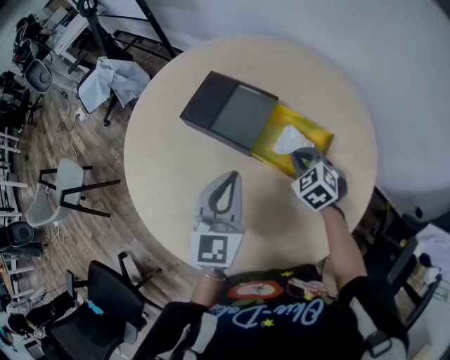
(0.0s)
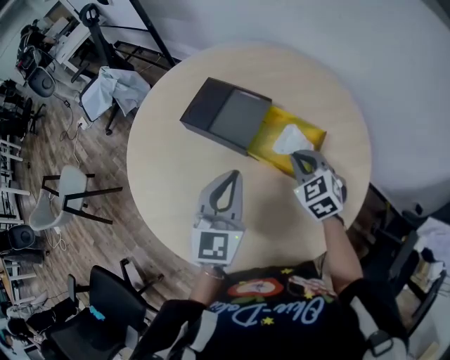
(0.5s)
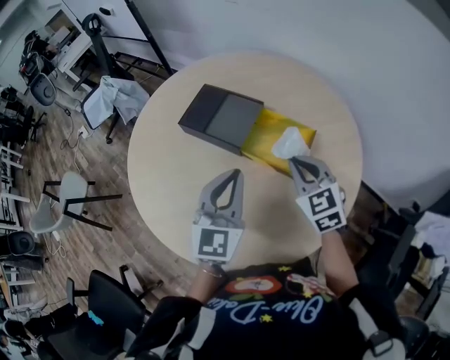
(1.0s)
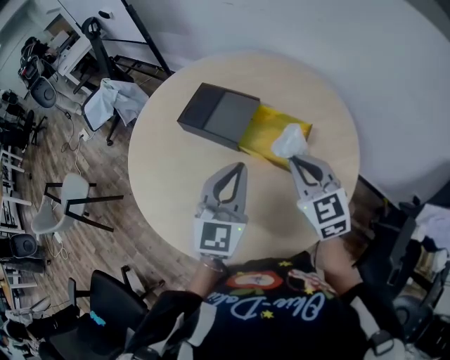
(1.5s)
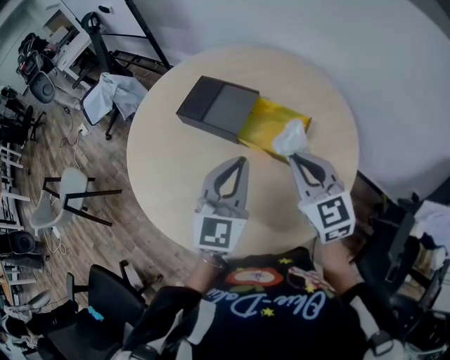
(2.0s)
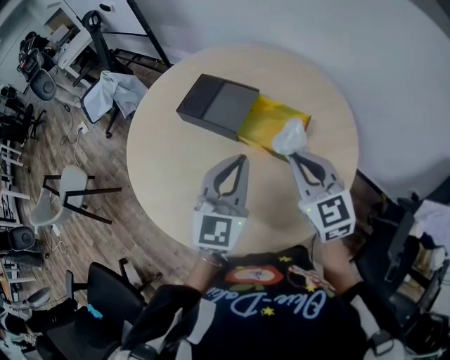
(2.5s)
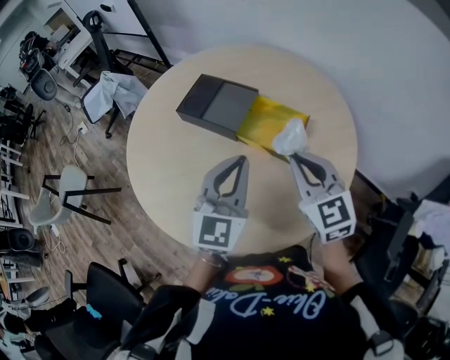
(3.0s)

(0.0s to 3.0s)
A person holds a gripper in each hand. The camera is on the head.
0.0s - 1.5s: The right gripper goes some 20 cm upward and backward, and changes its angle by some 30 degrees, while the left gripper is displaced upward and backward by approximately 10 cm.
1.5s - 3.0s: The grippers move only a little.

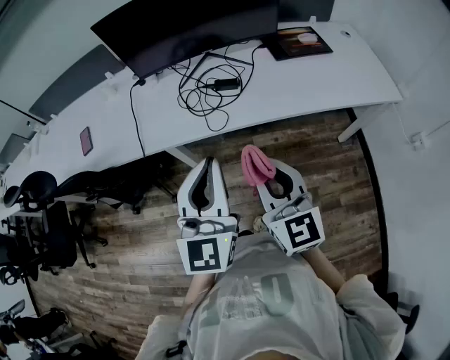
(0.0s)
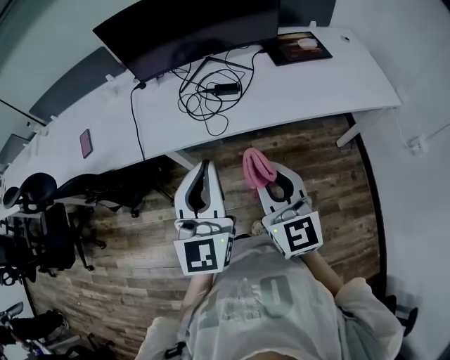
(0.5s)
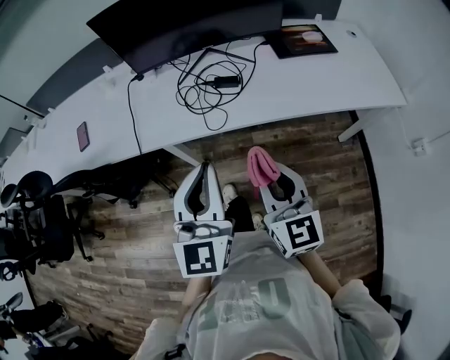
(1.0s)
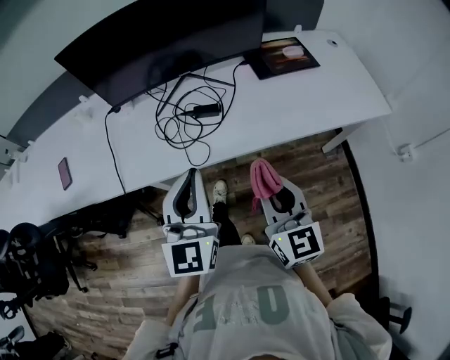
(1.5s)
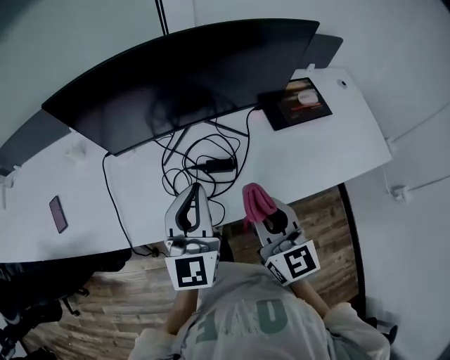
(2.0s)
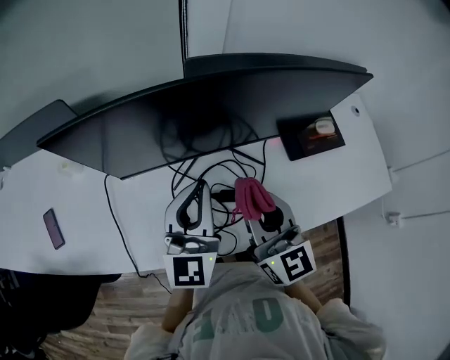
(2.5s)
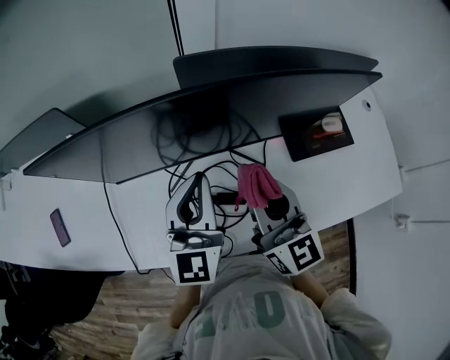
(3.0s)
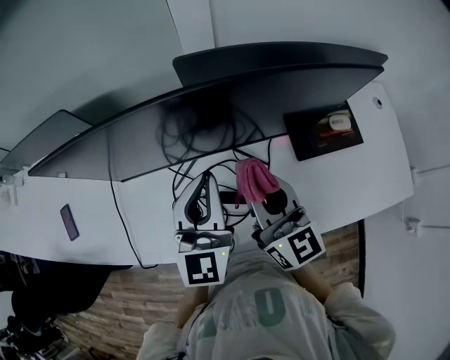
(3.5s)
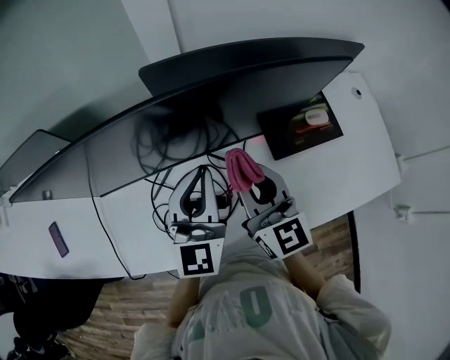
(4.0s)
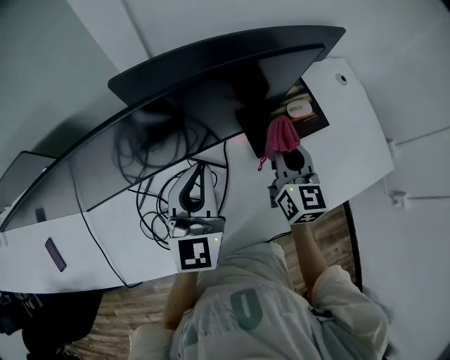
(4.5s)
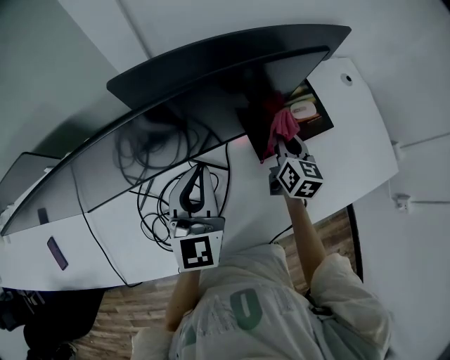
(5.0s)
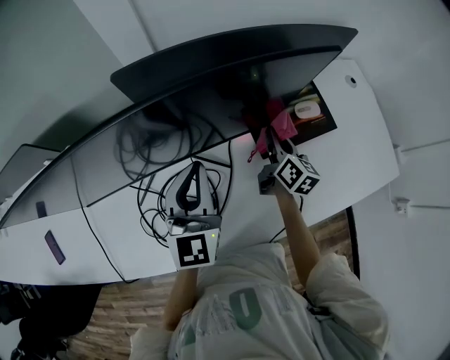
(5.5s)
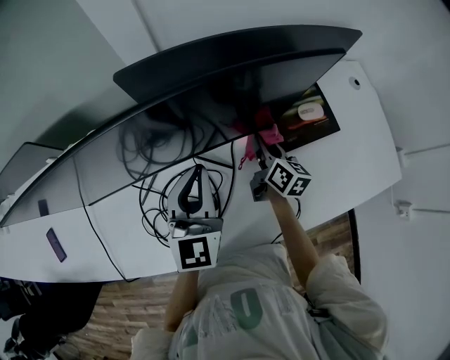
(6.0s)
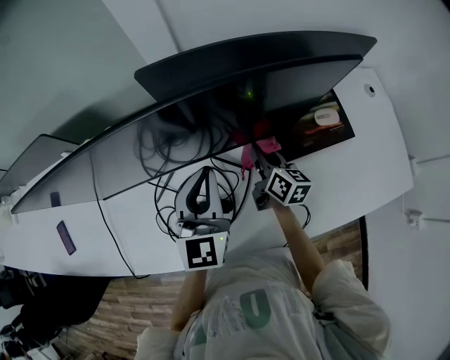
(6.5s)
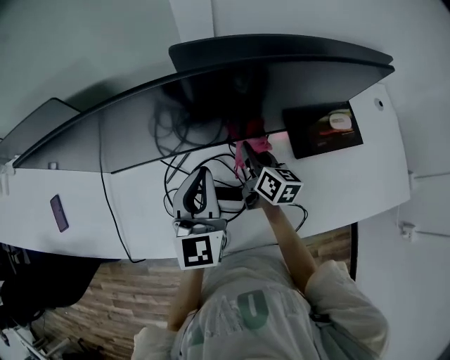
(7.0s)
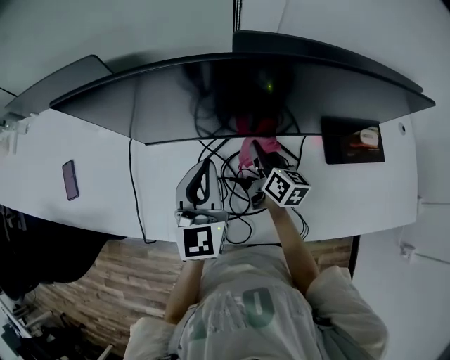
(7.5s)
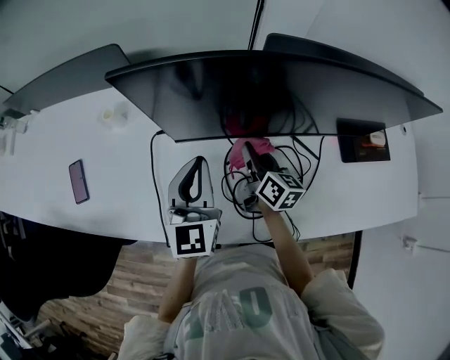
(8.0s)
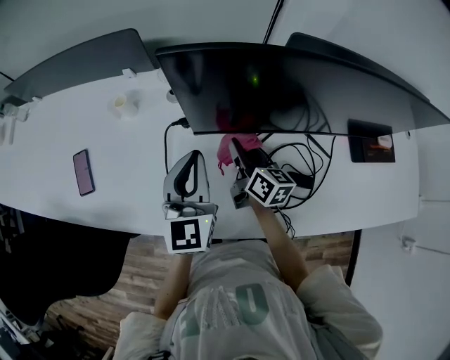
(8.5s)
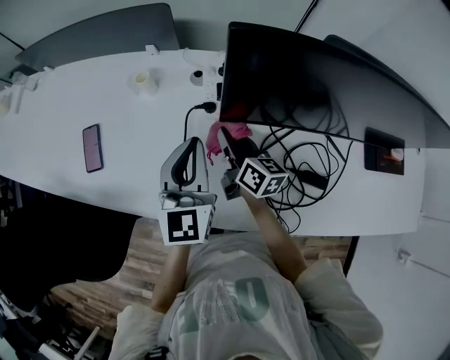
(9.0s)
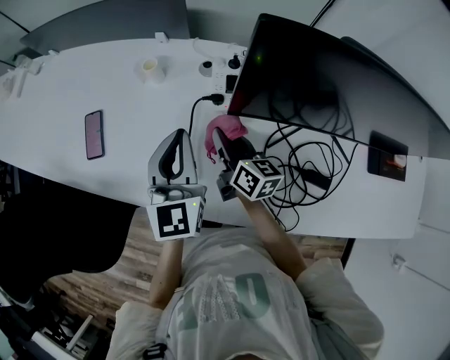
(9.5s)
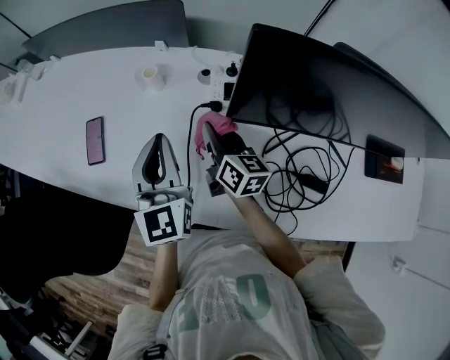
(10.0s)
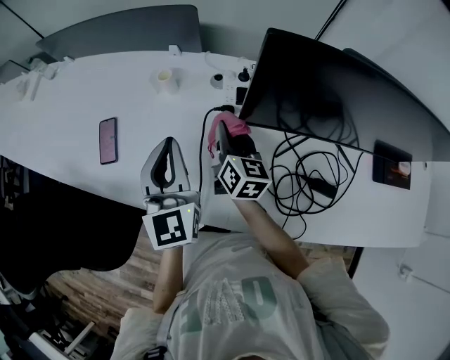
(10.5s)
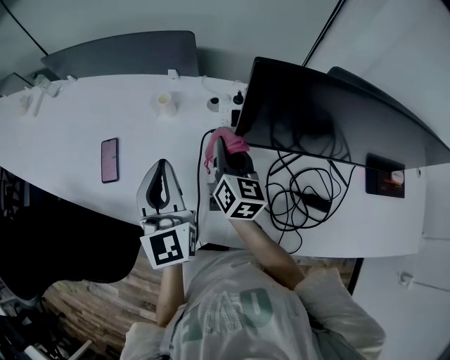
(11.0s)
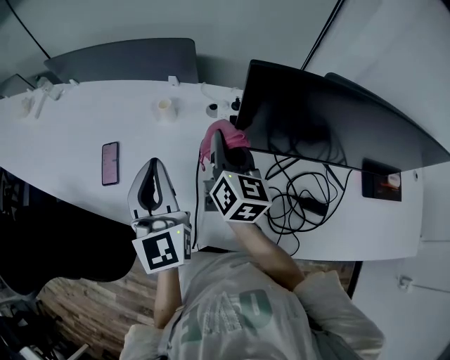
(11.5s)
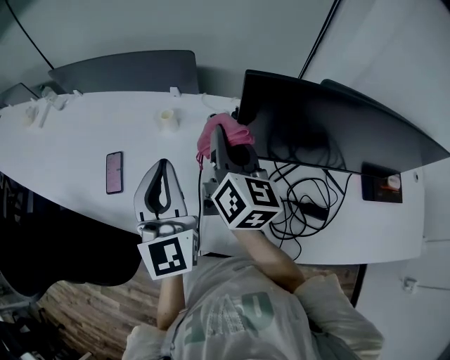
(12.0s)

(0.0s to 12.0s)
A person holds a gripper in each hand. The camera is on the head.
0.0s - 2.0s: Both grippers move forward, approximately 25 cm.
2.0s - 4.0s: The right gripper moves forward, some 20 cm; the left gripper shifts some 20 cm forward and to the right.
4.0s - 6.0s: The right gripper moves downward, to the right and forward, roughly 25 cm, and changes its angle by about 40 degrees, while the left gripper ends up about 5 cm from where it was.
6.0s - 8.0s: The two grippers go roughly 35 cm to the left.
8.0s - 10.0s: Both grippers move to the left, approximately 20 cm. The left gripper swivels about 20 degrees.
10.0s - 12.0s: The right gripper travels upward by some 20 cm, and changes its angle by about 20 degrees. Meanwhile the left gripper goes about 10 cm upward.

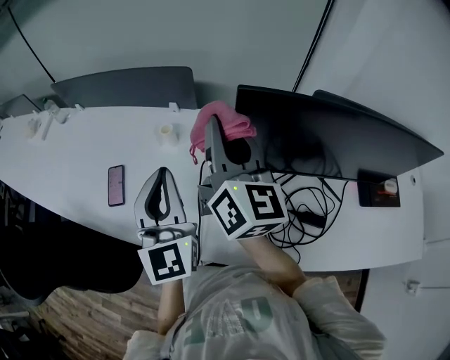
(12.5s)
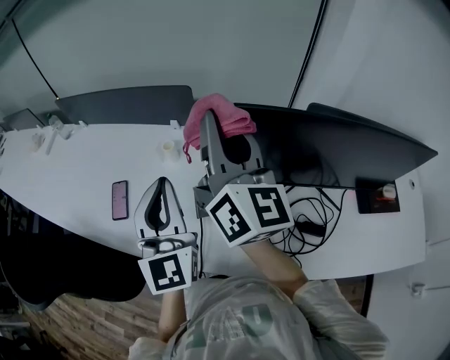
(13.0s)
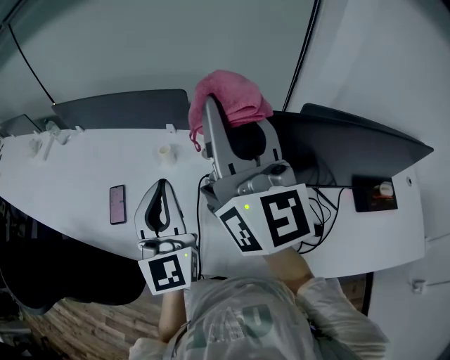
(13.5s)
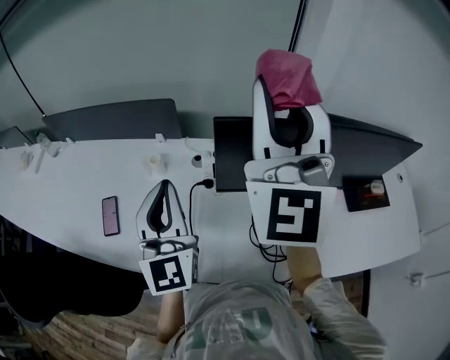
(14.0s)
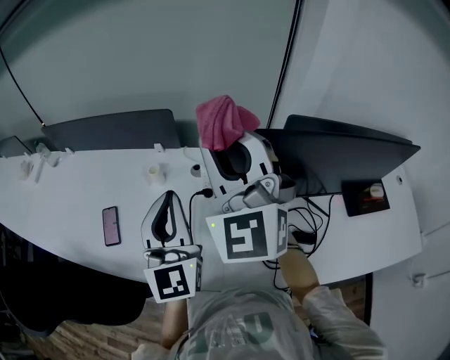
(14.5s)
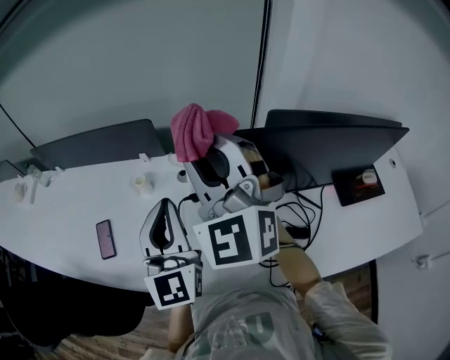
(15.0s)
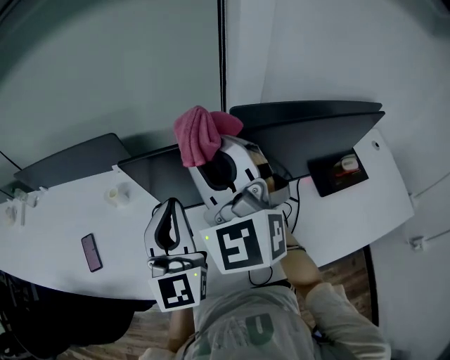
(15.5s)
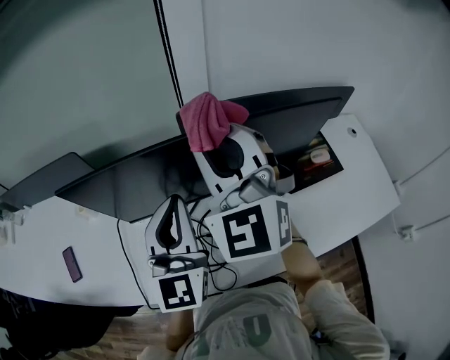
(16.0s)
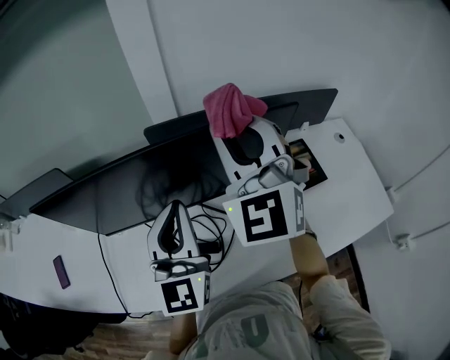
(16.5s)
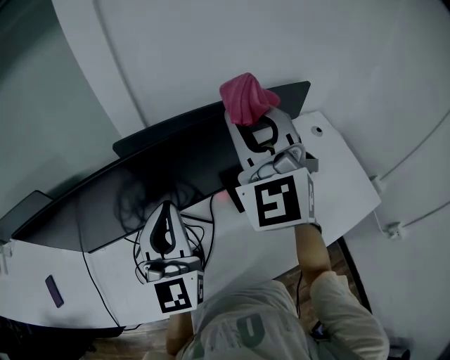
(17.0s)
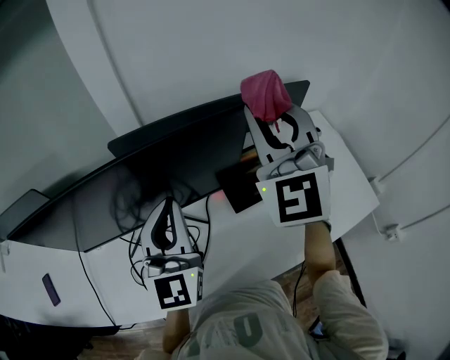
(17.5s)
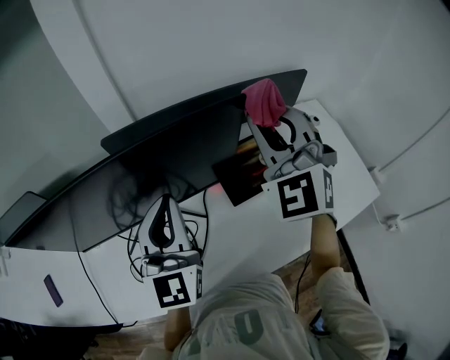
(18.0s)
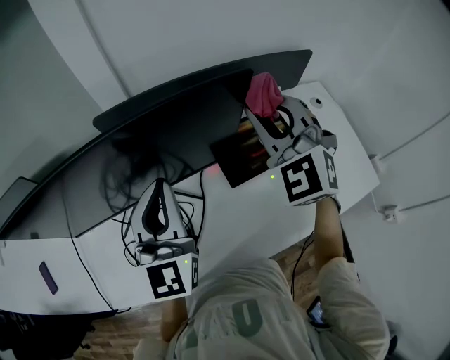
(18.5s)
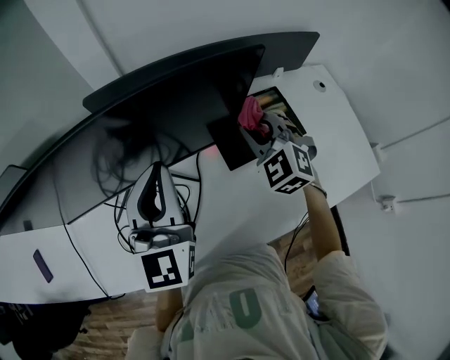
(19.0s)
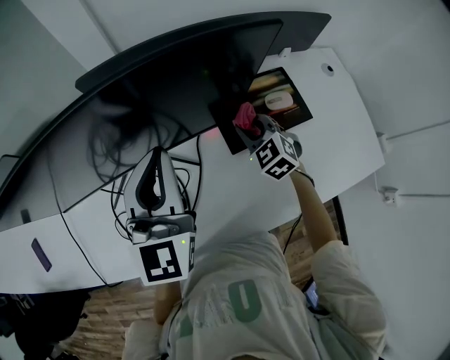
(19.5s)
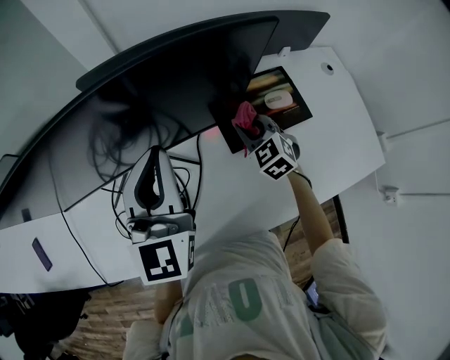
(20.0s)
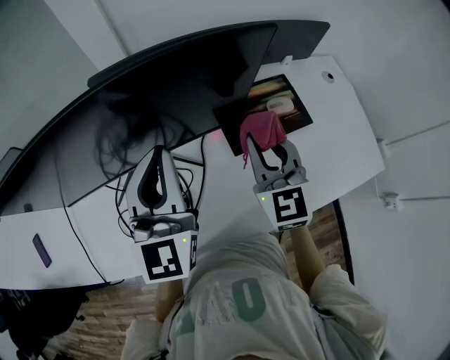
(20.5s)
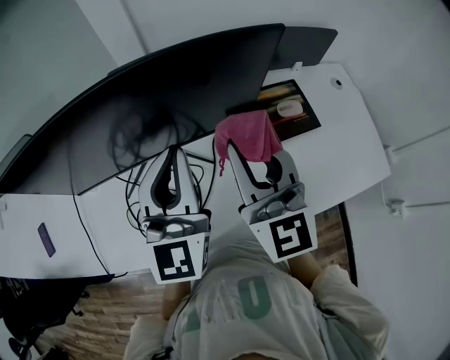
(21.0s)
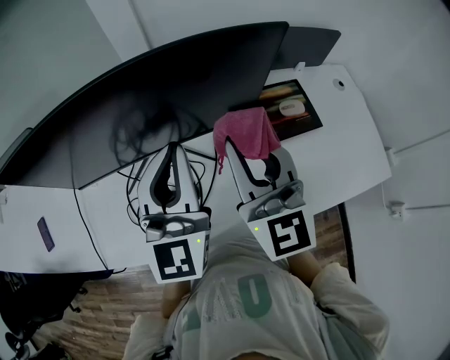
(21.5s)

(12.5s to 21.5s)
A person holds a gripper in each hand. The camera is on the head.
12.5s - 14.5s: The right gripper heads upward, covering some 10 cm, and rolls counterclockwise, seen from behind, by some 60 degrees. The left gripper ends up roughly 5 cm from where it was.
14.5s - 17.0s: The pair of grippers is taken roughly 50 cm. The right gripper swivels roughly 30 degrees, while the left gripper rotates roughly 20 degrees.
17.0s - 19.5s: The right gripper goes roughly 40 cm downward, and angles its fingers downward, by roughly 50 degrees, while the left gripper moves downward, approximately 5 cm.
19.5s - 21.5s: The left gripper moves backward, about 5 cm. The right gripper goes some 30 cm upward and backward, and tips its fingers upward by about 50 degrees.

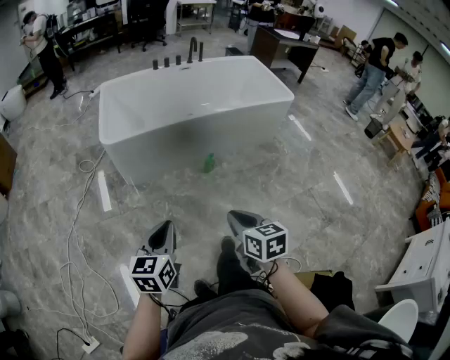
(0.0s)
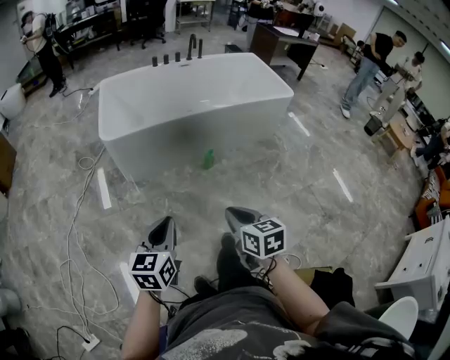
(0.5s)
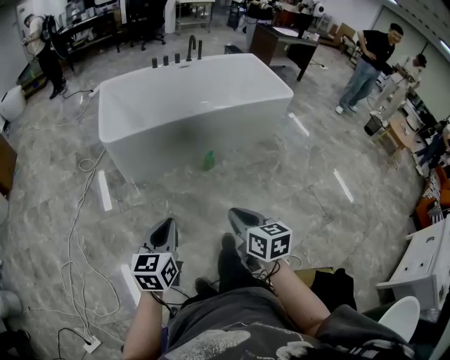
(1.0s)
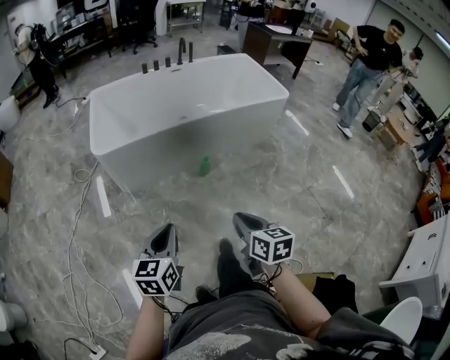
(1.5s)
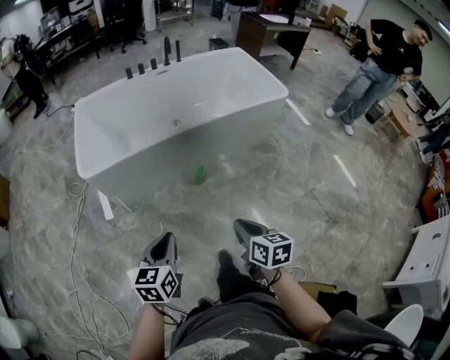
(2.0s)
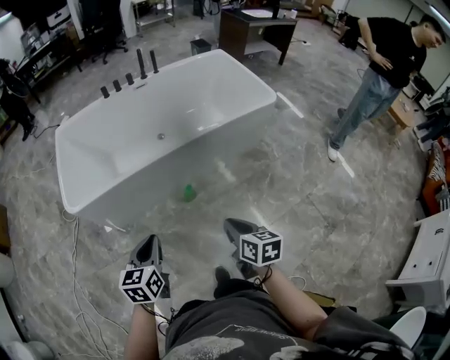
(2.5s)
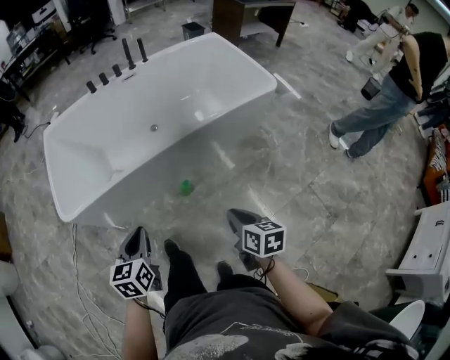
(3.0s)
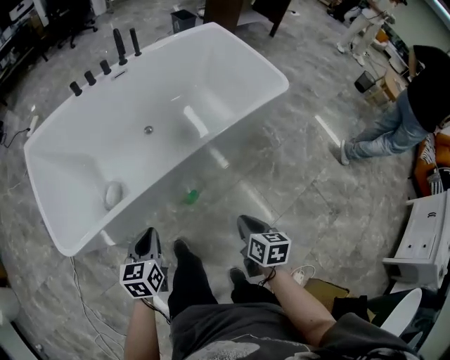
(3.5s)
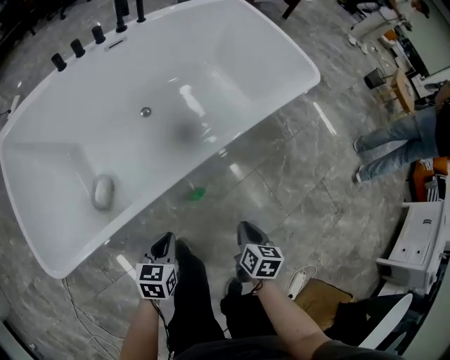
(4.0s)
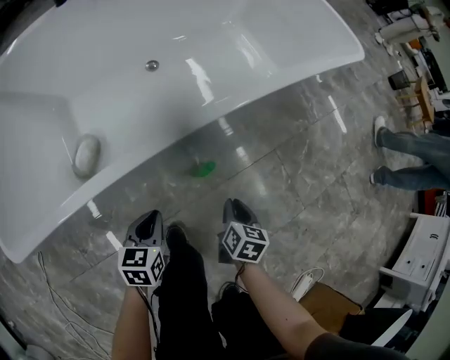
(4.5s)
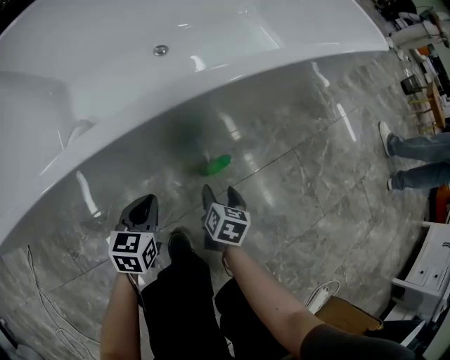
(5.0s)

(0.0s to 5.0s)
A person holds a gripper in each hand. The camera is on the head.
0.0s - 2.5s: Both grippers move forward and to the right, approximately 35 cm.
2.5s - 5.0s: The two grippers go roughly 60 cm downward. The right gripper changes its angle by approximately 30 degrees, and opens up.
